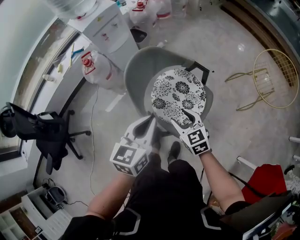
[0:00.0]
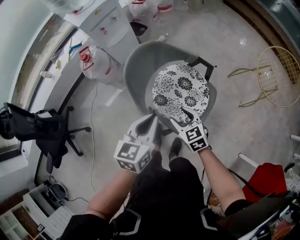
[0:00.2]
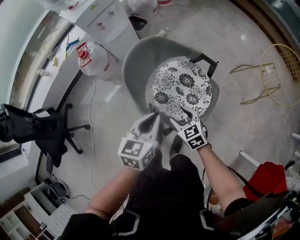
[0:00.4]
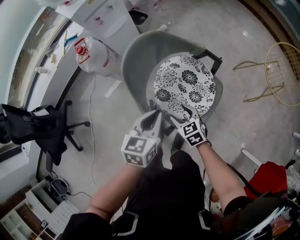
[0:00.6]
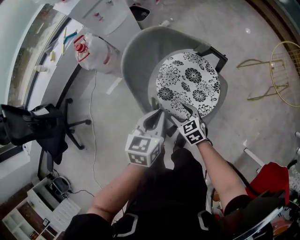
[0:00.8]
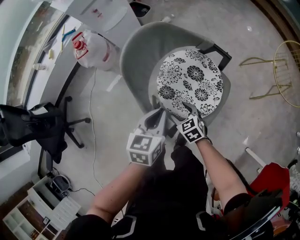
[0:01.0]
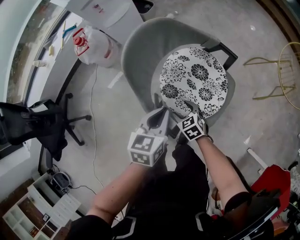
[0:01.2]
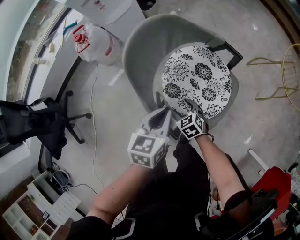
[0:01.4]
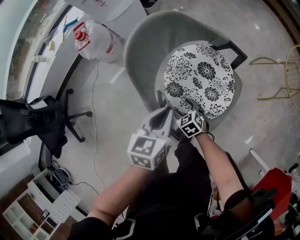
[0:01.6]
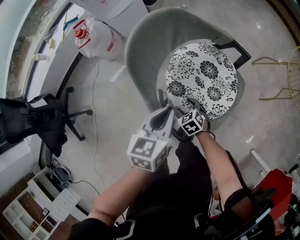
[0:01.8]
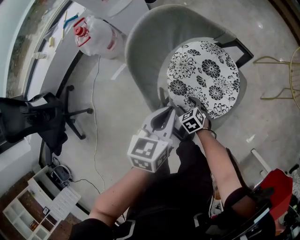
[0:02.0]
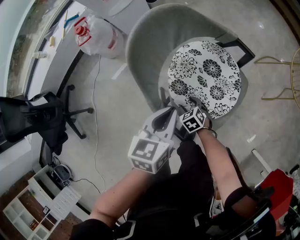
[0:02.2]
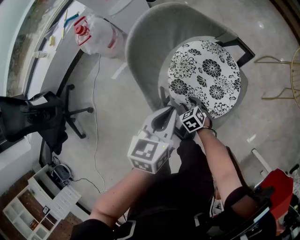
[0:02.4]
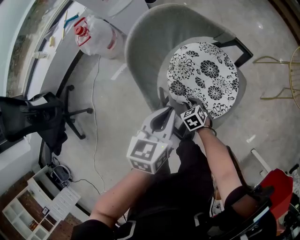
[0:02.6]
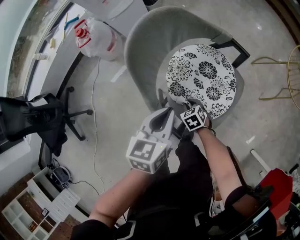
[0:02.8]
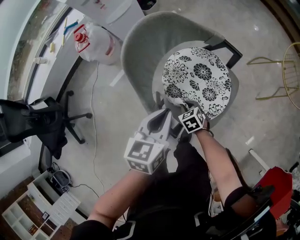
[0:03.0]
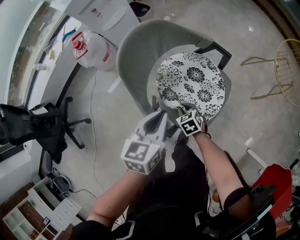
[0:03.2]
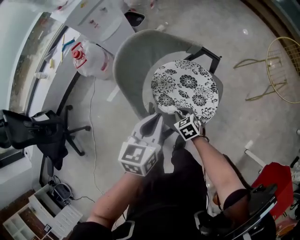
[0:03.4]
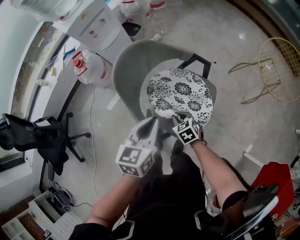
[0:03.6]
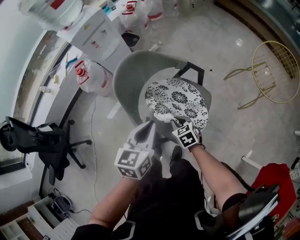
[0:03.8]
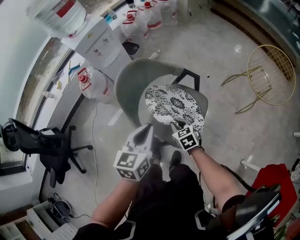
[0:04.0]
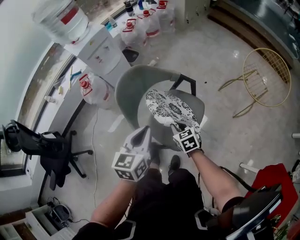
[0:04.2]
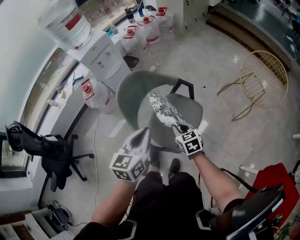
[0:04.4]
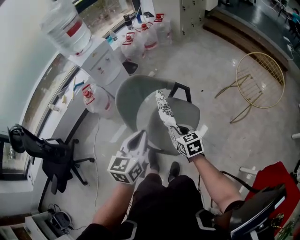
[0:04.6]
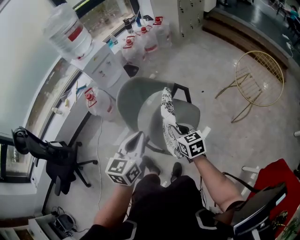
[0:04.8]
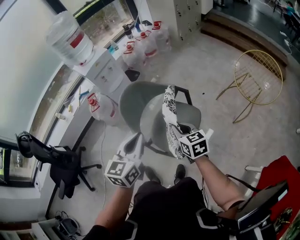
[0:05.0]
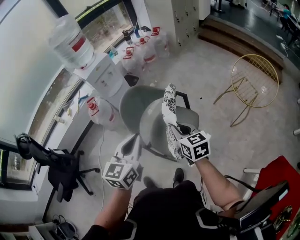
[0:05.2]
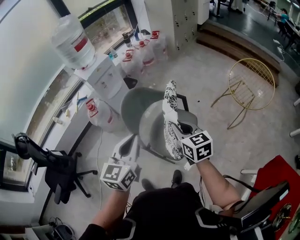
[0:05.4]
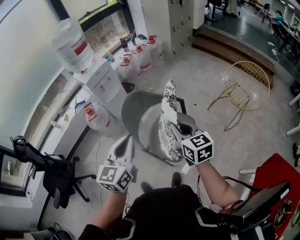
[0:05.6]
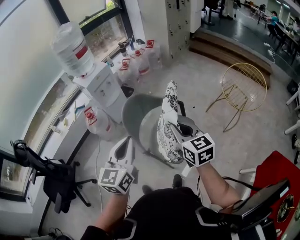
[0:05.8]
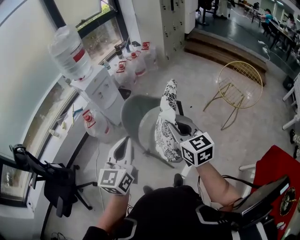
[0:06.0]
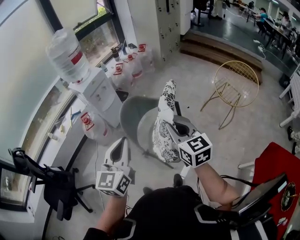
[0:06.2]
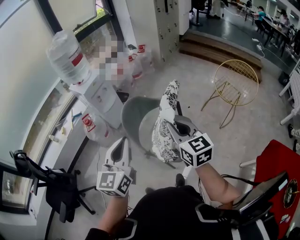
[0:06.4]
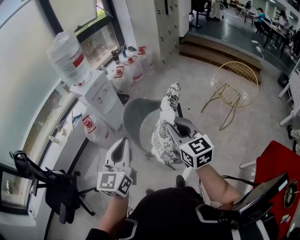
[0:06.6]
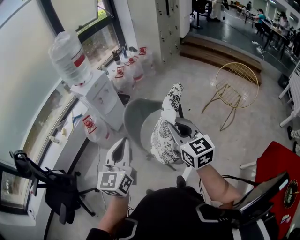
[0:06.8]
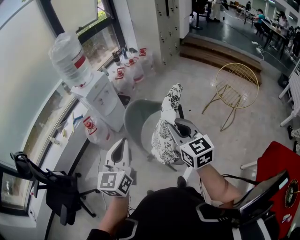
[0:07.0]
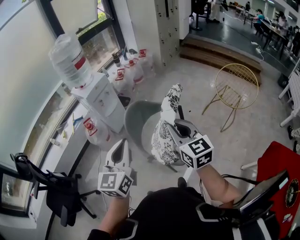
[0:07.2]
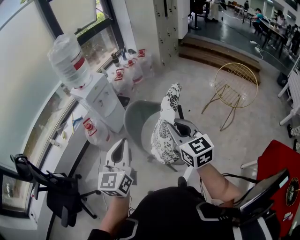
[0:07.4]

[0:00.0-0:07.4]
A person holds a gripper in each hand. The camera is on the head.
0:00.0 to 0:01.4: The two grippers go approximately 25 cm downward. The right gripper swivels some 20 degrees.
0:01.4 to 0:03.0: The right gripper closes.
0:03.0 to 0:04.4: The two grippers go about 25 cm upward. The right gripper rotates about 30 degrees.
0:04.4 to 0:06.0: The left gripper goes about 20 cm upward and to the left; the right gripper travels upward by approximately 30 cm, and turns by about 30 degrees.
0:06.0 to 0:07.4: The grippers move only a little.

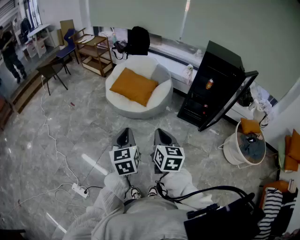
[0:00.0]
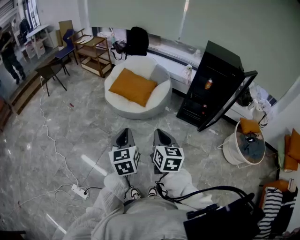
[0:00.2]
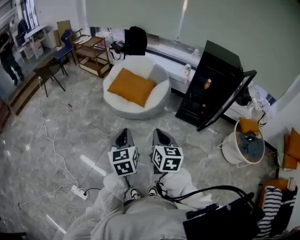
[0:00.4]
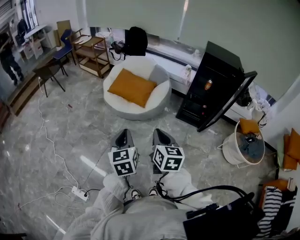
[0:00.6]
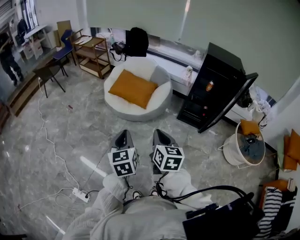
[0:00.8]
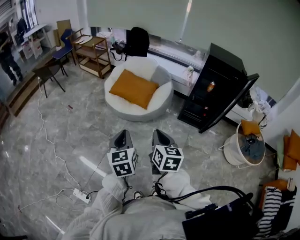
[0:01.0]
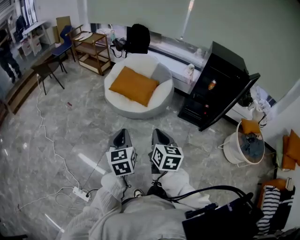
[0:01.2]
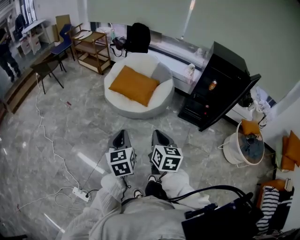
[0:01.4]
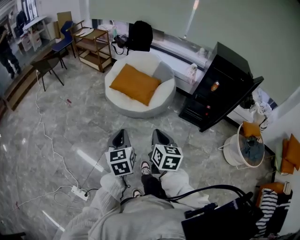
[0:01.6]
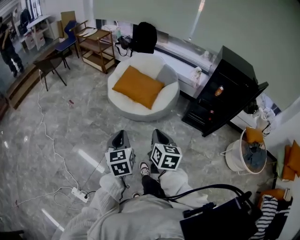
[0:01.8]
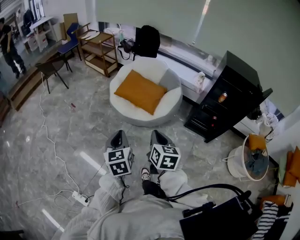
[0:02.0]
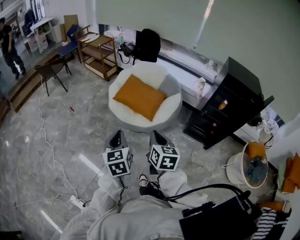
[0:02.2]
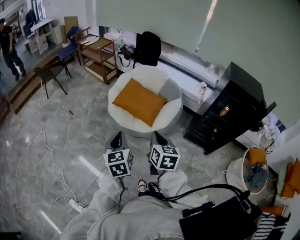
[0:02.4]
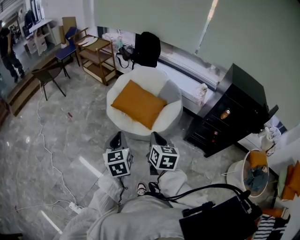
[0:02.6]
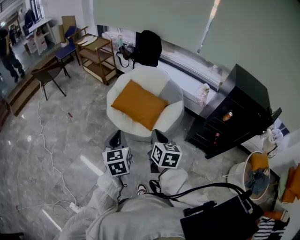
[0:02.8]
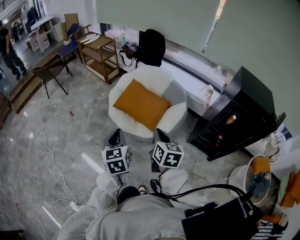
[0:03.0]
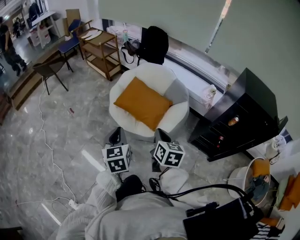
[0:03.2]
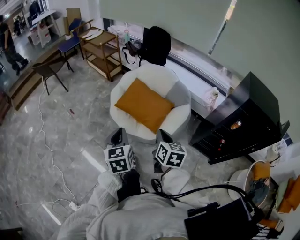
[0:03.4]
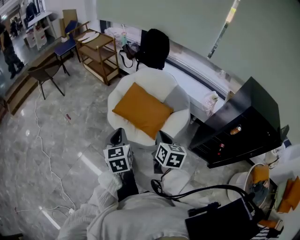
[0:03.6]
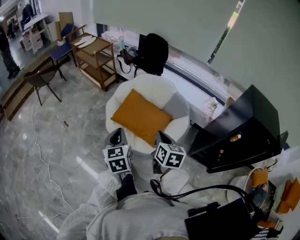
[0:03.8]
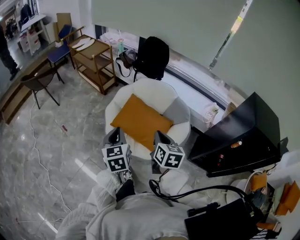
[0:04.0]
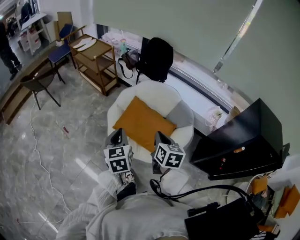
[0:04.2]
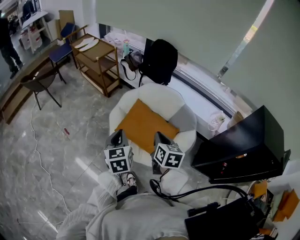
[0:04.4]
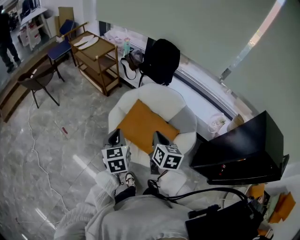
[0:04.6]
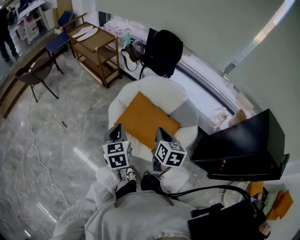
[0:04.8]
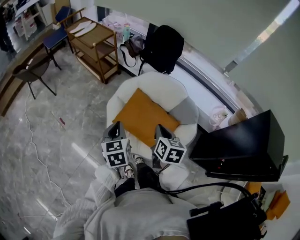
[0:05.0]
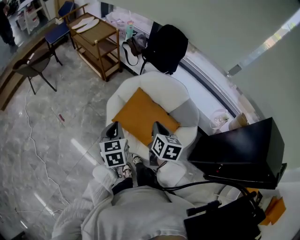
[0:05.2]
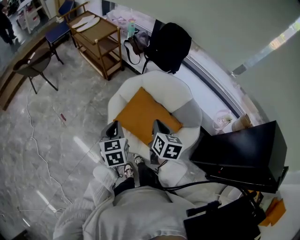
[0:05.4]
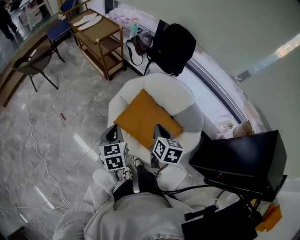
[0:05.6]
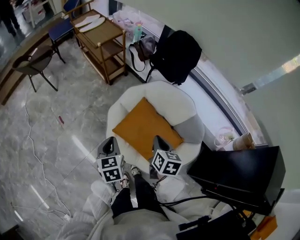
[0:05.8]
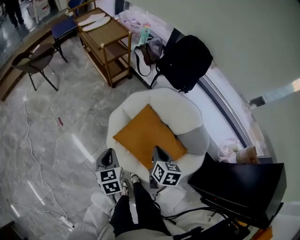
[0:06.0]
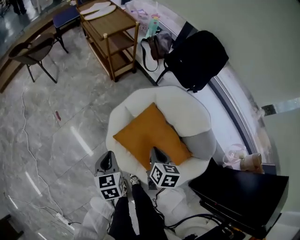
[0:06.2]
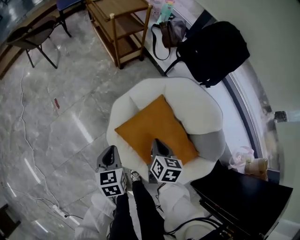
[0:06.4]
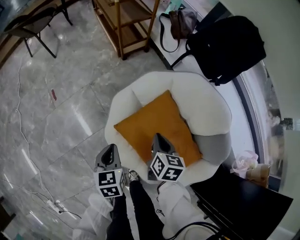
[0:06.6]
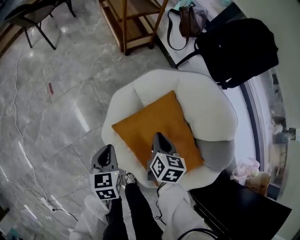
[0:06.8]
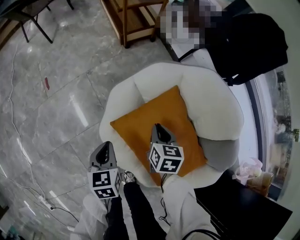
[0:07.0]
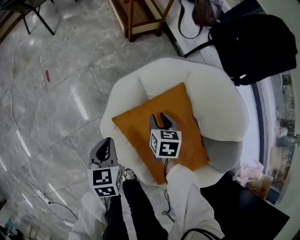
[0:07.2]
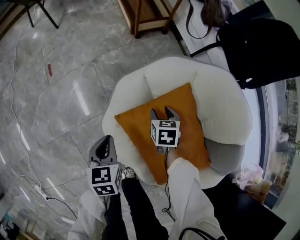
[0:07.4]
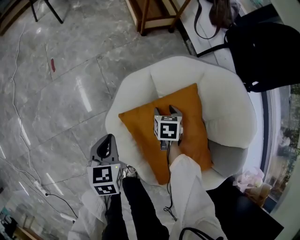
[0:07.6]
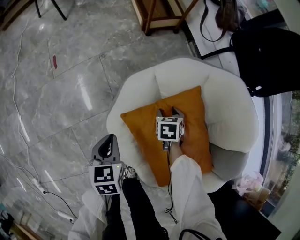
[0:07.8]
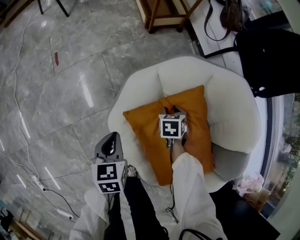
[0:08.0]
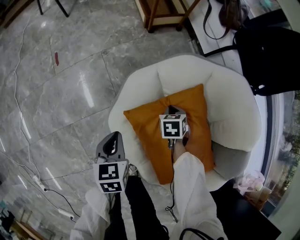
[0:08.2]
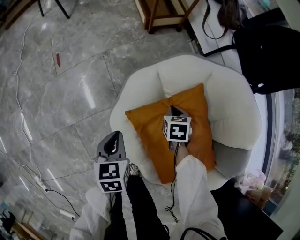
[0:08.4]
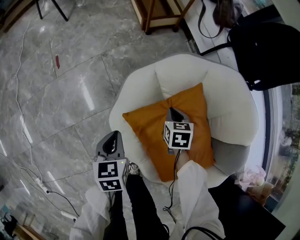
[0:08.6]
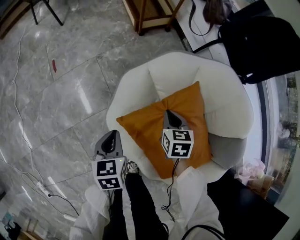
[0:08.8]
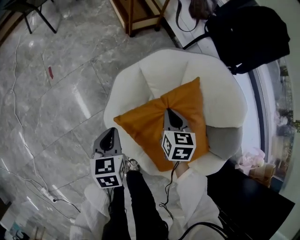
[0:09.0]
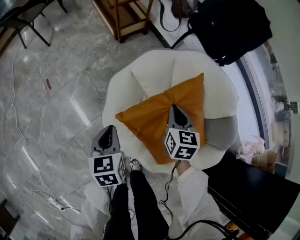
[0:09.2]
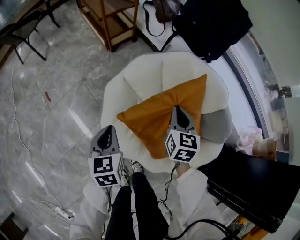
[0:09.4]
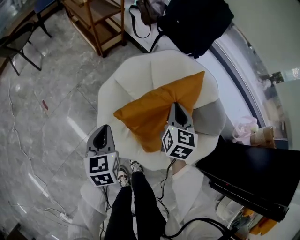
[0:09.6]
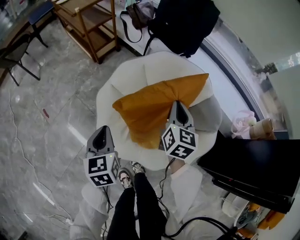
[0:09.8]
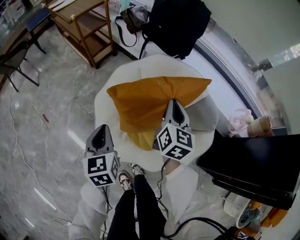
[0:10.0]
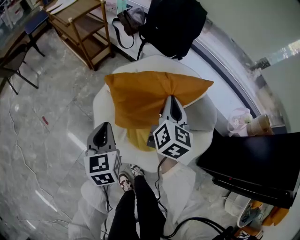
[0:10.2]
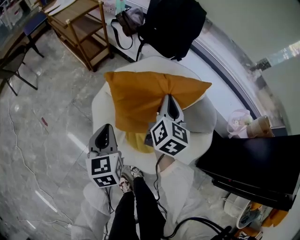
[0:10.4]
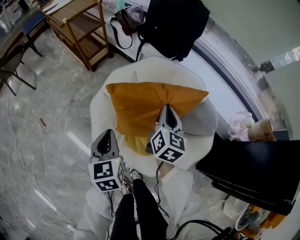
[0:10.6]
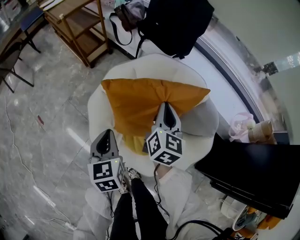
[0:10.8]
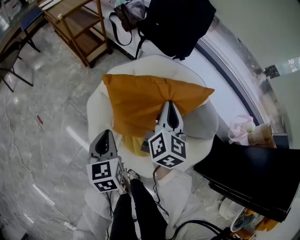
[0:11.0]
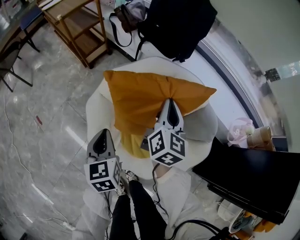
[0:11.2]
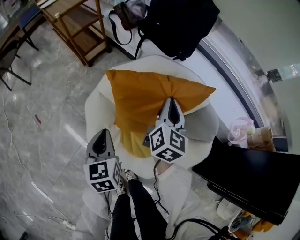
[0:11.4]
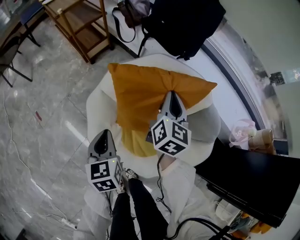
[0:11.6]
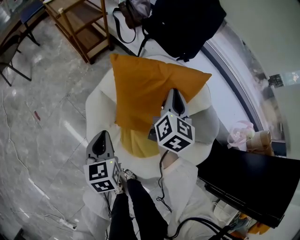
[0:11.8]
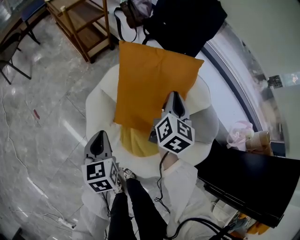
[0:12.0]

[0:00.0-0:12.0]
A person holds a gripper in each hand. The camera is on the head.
0:00.0 to 0:01.6: The left gripper goes some 10 cm to the left and forward. The right gripper travels forward and to the left by about 10 cm.
0:01.6 to 0:03.0: Both grippers travel together forward, about 30 cm.
0:03.0 to 0:04.4: The two grippers go roughly 35 cm forward.
0:04.4 to 0:06.0: The right gripper shifts some 25 cm forward and downward, while the left gripper moves downward and forward, roughly 20 cm.
0:06.0 to 0:07.6: The left gripper moves downward, some 30 cm; the right gripper shifts approximately 50 cm downward and forward, swivels some 40 degrees, and opens its fingers.
0:07.6 to 0:09.0: The left gripper goes approximately 5 cm upward, while the right gripper is displaced upward by roughly 15 cm, rotates roughly 20 degrees, and closes.
0:09.0 to 0:10.4: Both grippers travel together upward and to the right, some 25 cm. The right gripper changes its angle by approximately 50 degrees; the left gripper turns by approximately 30 degrees.
0:10.4 to 0:12.0: The left gripper shifts some 5 cm downward; the right gripper is displaced forward and downward by some 10 cm.

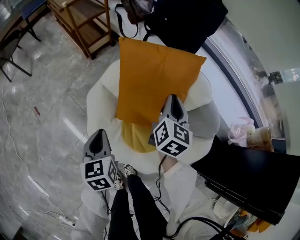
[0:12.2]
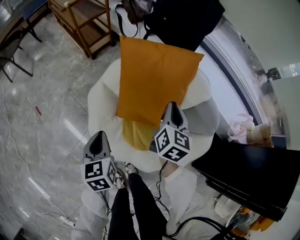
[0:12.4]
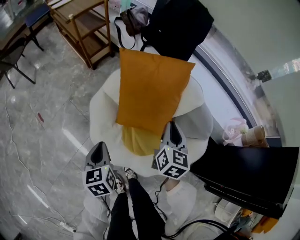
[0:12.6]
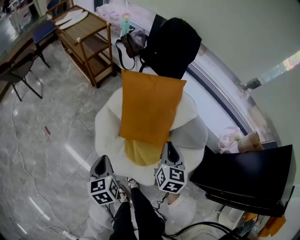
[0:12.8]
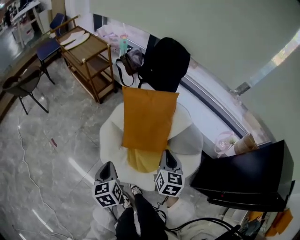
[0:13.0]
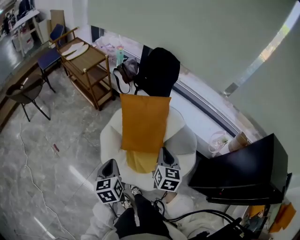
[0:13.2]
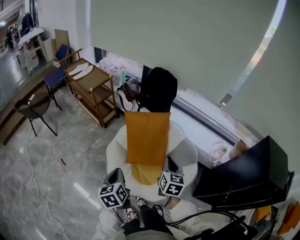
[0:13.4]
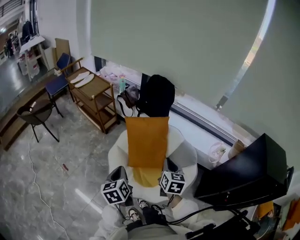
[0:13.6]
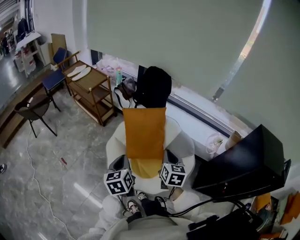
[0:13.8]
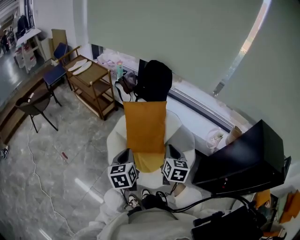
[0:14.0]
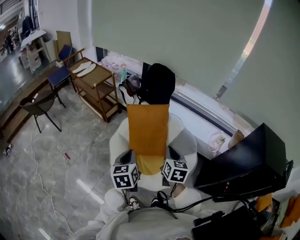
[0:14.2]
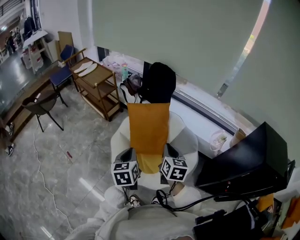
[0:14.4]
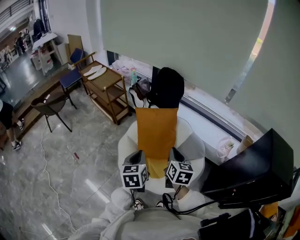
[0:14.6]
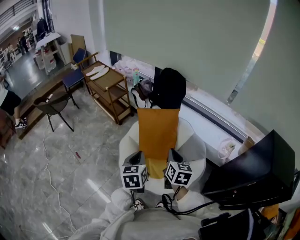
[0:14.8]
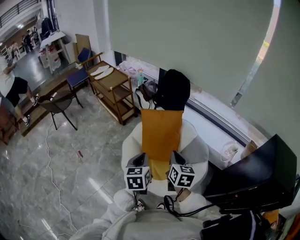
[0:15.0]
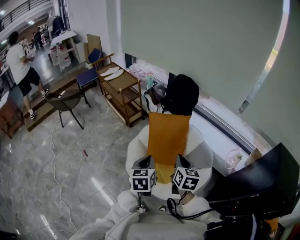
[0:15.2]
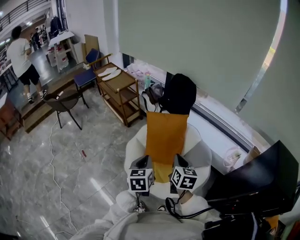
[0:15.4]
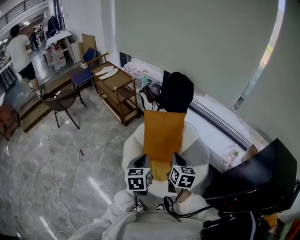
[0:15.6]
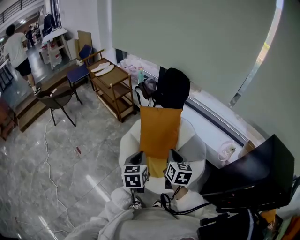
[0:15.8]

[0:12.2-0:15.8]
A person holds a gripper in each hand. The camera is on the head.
0:12.2 to 0:14.0: The right gripper travels backward and upward by about 40 cm. Meanwhile the left gripper shifts roughly 35 cm upward and backward.
0:14.0 to 0:15.8: The left gripper moves some 5 cm.
